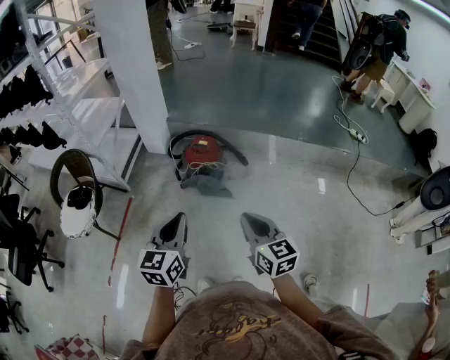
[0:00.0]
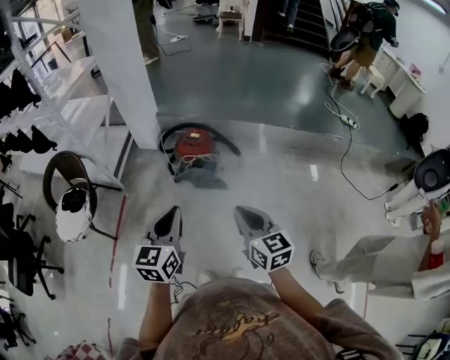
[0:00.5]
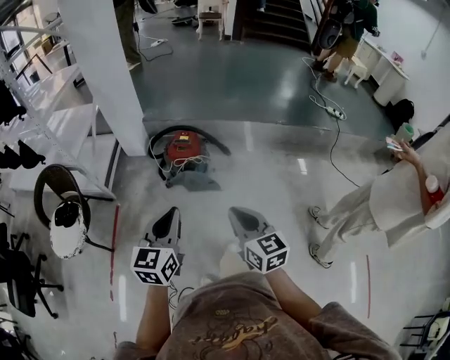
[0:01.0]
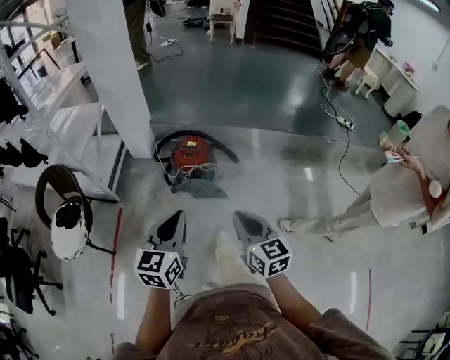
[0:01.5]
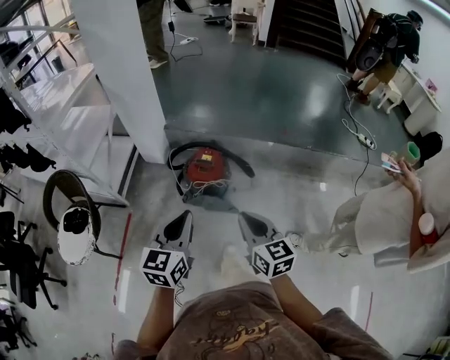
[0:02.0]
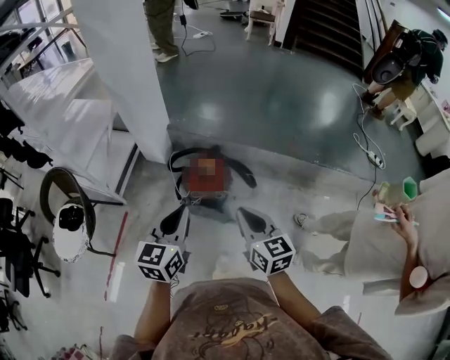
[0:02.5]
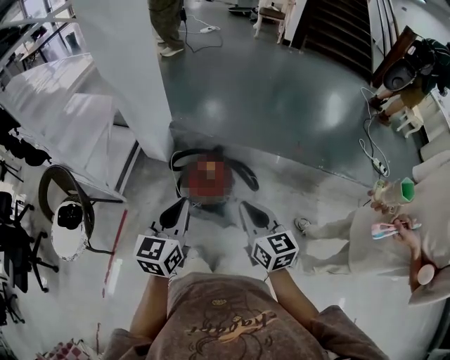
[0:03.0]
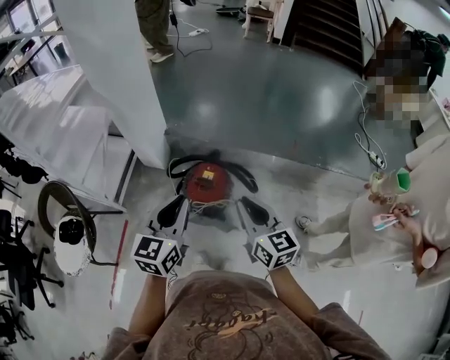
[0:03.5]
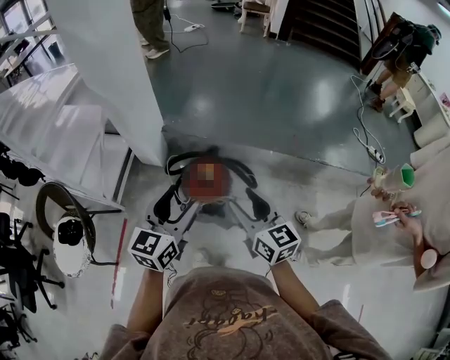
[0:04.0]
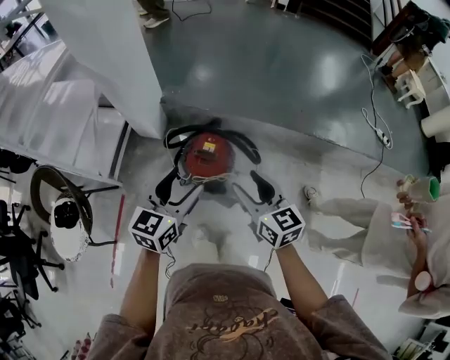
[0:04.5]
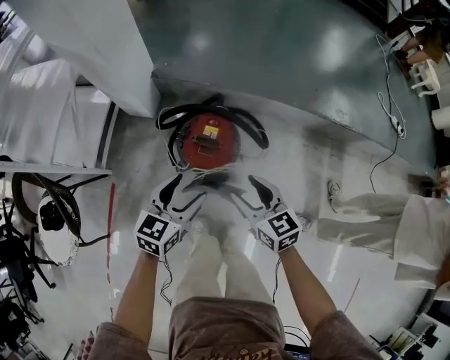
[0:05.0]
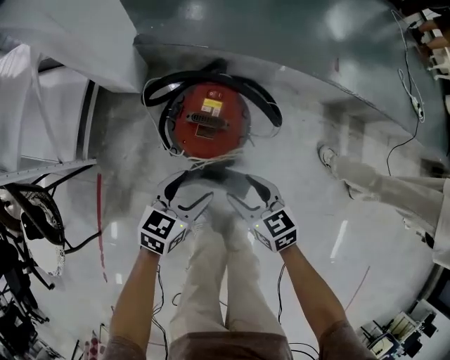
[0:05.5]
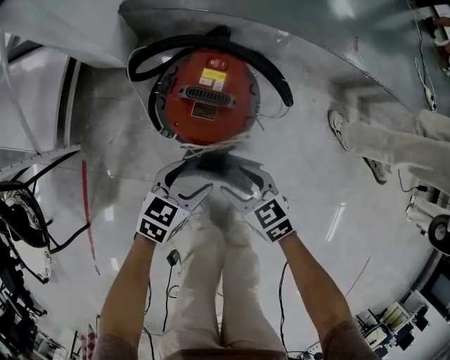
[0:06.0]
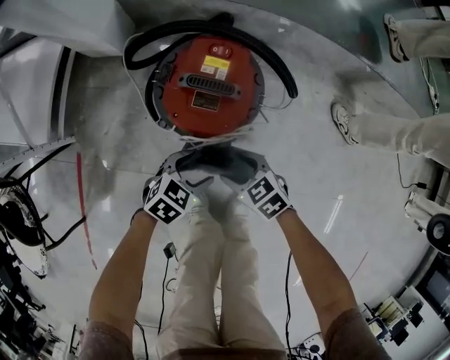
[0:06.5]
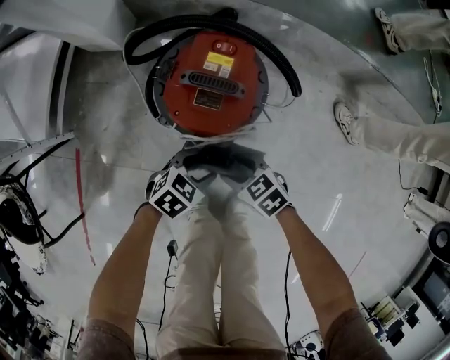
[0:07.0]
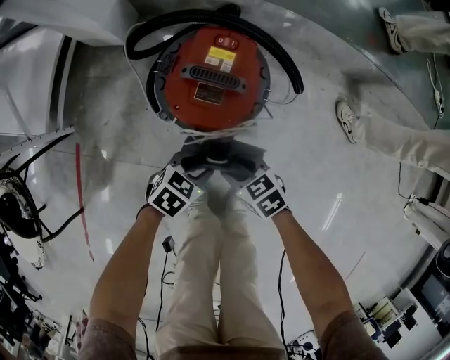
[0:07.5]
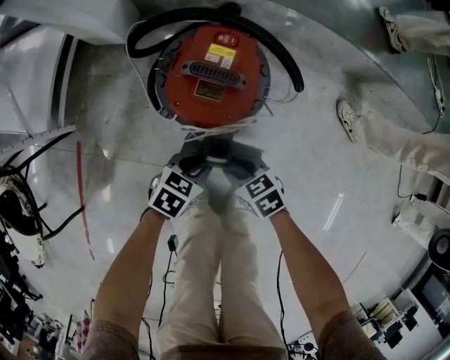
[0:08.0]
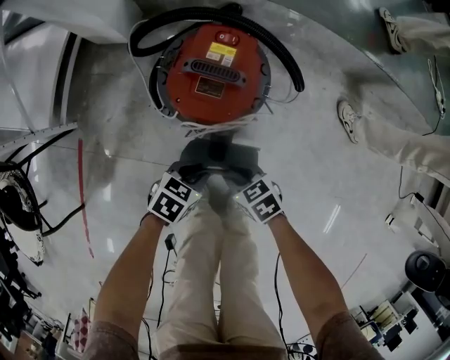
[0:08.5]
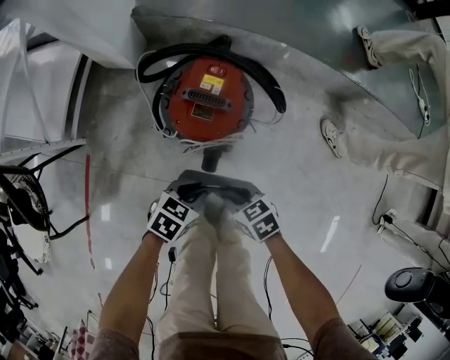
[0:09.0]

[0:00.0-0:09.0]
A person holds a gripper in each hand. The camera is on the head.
0:00.0 to 0:02.0: The grippers both shift forward by about 15 cm.
0:02.0 to 0:04.5: Both grippers move forward, roughly 25 cm. The right gripper opens up, while the left gripper opens up.
0:04.5 to 0:07.0: The grippers both shift downward by roughly 60 cm. The left gripper tilts its fingers about 30 degrees downward, while the right gripper angles its fingers downward, by some 40 degrees.
0:07.0 to 0:09.0: The two grippers go roughly 10 cm upward. The left gripper closes; the right gripper closes its fingers.

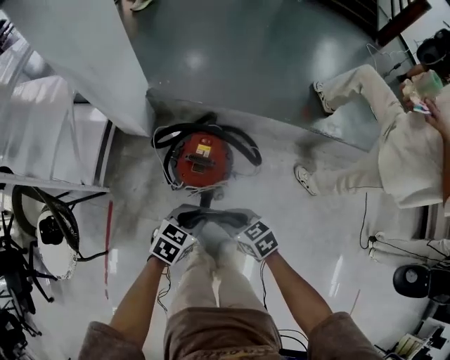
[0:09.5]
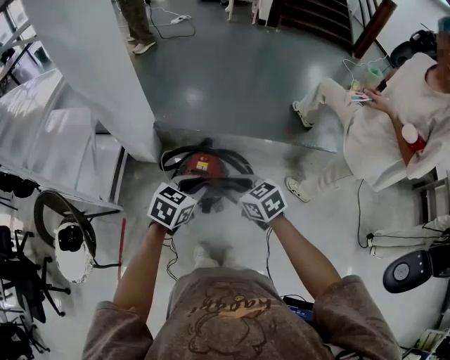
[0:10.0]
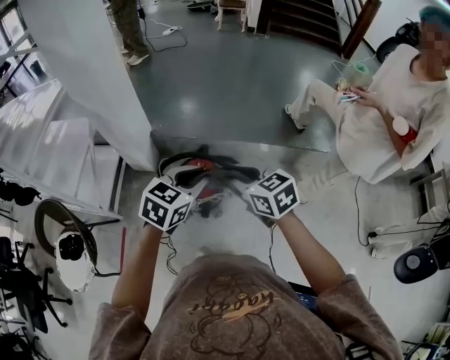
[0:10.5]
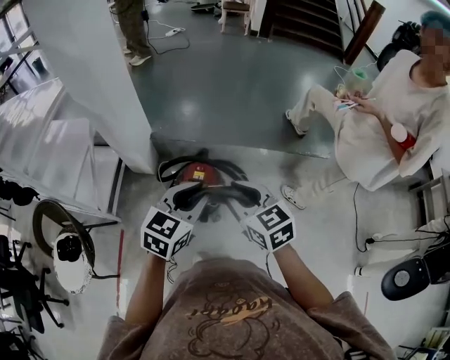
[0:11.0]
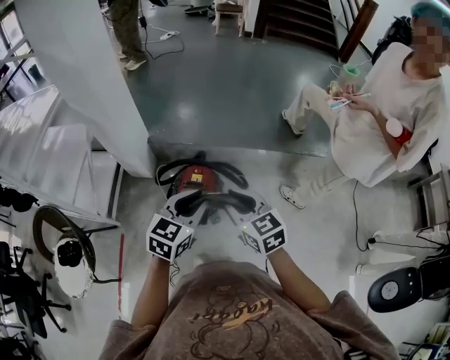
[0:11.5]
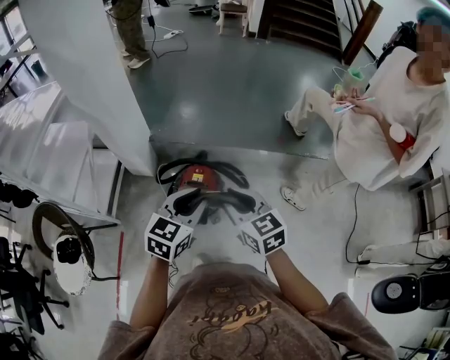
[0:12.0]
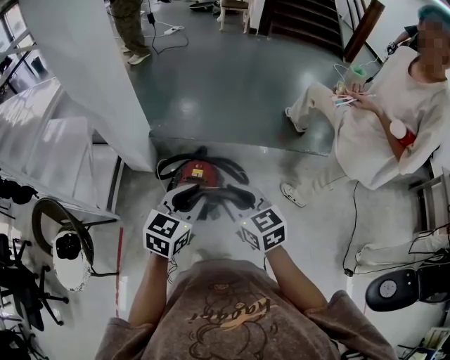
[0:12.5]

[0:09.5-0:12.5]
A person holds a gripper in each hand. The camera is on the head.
0:09.5 to 0:11.0: Both grippers move upward, approximately 30 cm. The right gripper changes its angle by some 30 degrees. Meanwhile the left gripper swivels some 30 degrees.
0:11.0 to 0:12.5: There are only small adjustments of the grippers.

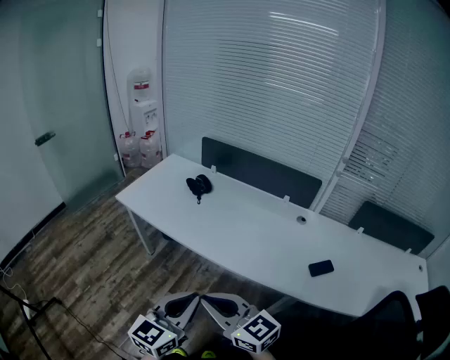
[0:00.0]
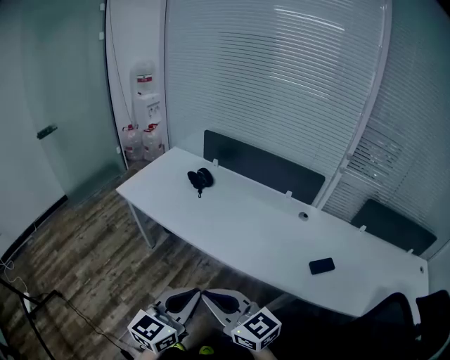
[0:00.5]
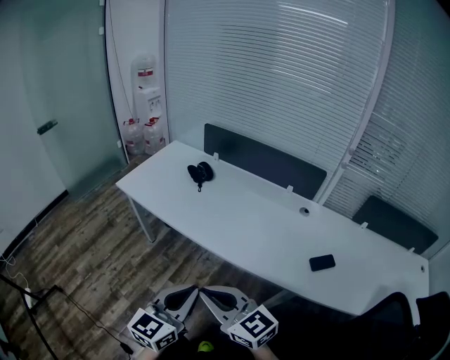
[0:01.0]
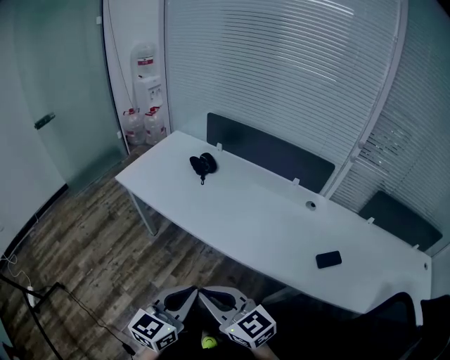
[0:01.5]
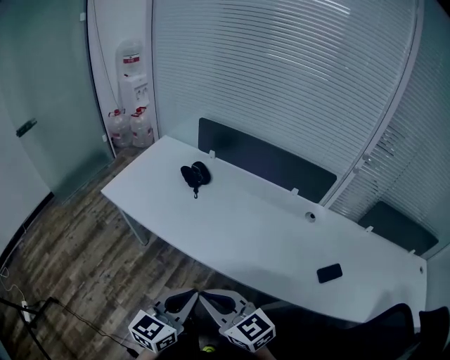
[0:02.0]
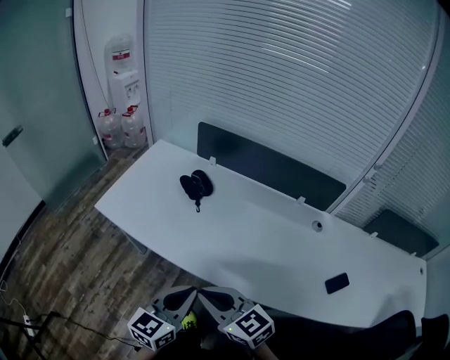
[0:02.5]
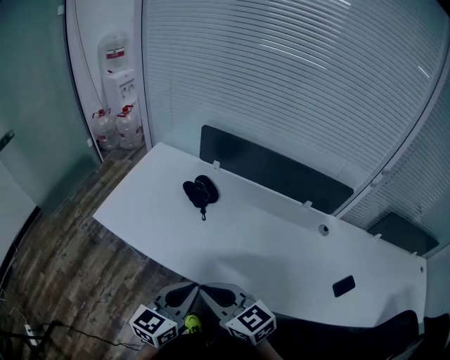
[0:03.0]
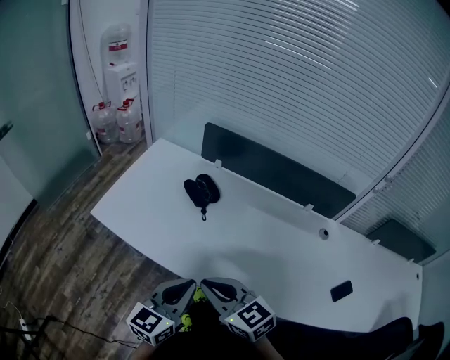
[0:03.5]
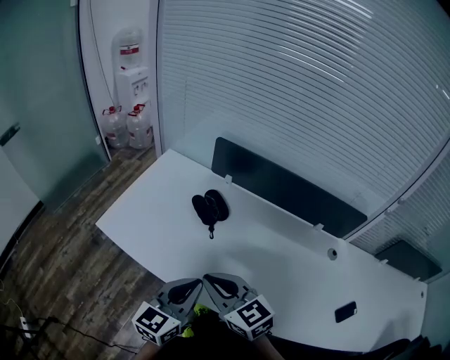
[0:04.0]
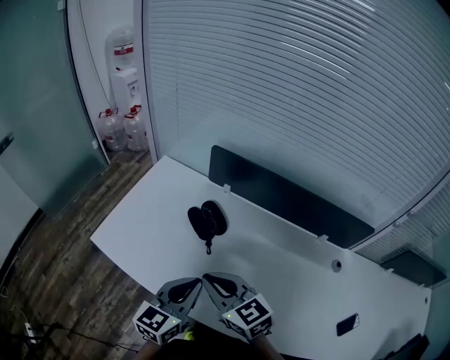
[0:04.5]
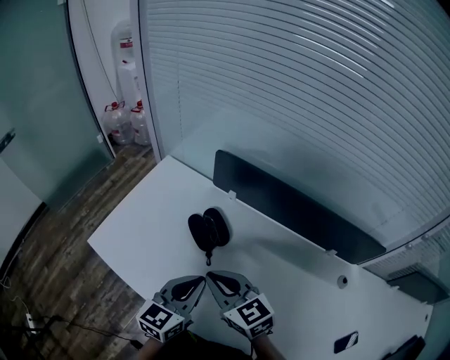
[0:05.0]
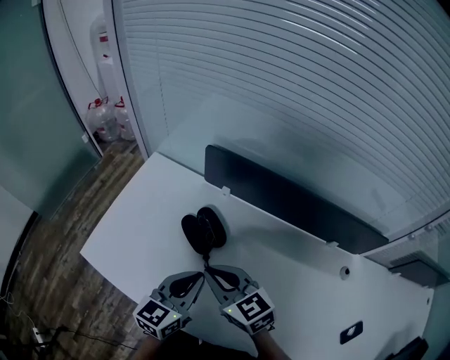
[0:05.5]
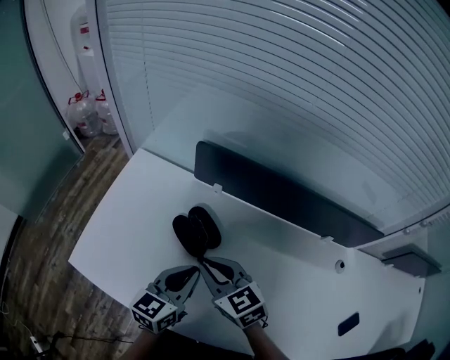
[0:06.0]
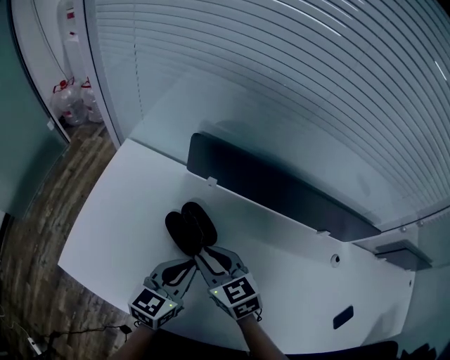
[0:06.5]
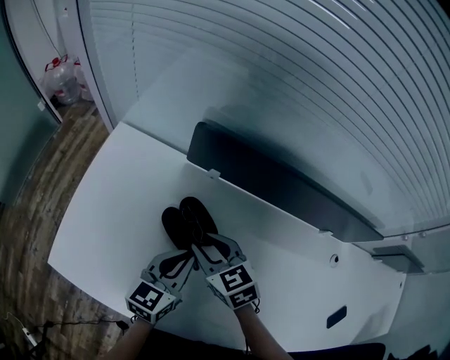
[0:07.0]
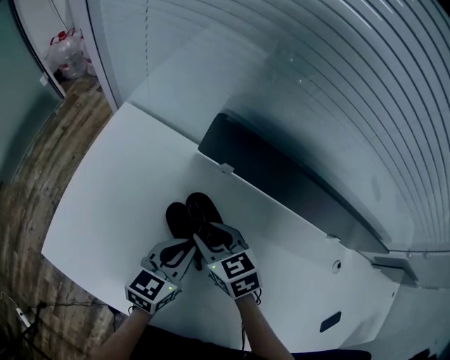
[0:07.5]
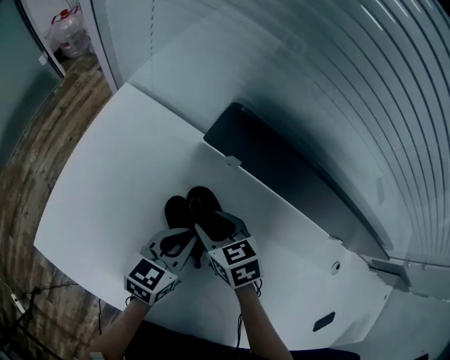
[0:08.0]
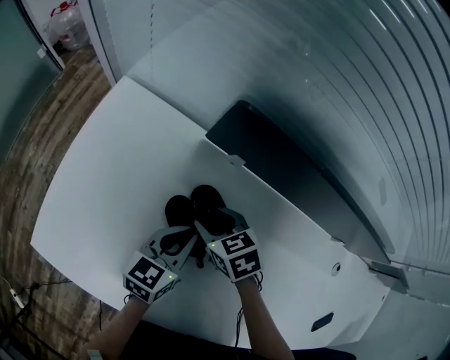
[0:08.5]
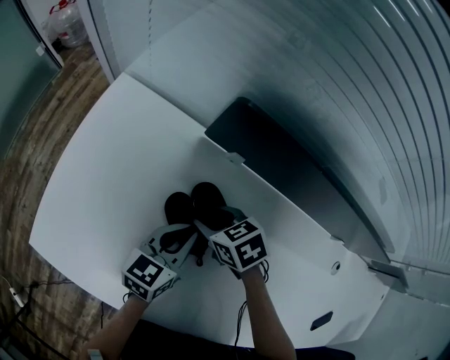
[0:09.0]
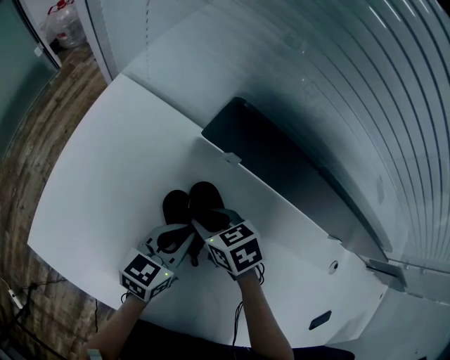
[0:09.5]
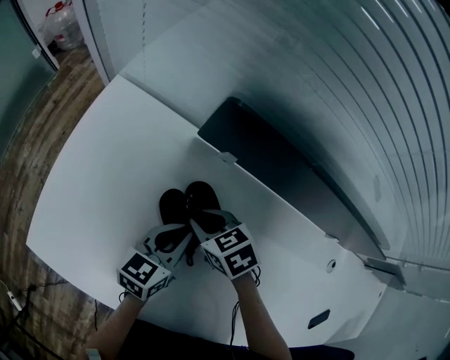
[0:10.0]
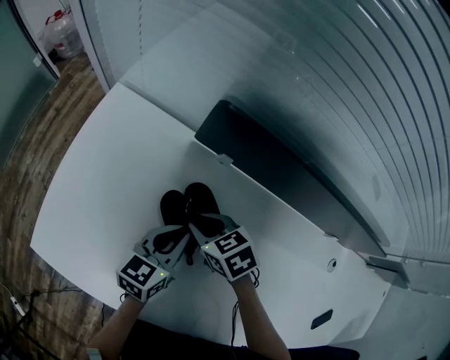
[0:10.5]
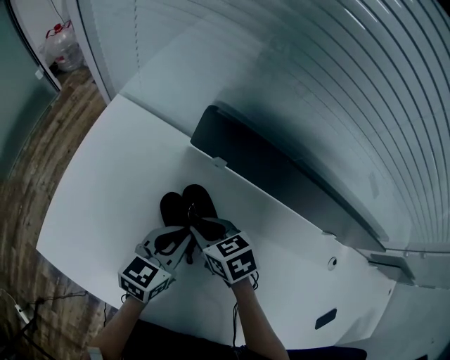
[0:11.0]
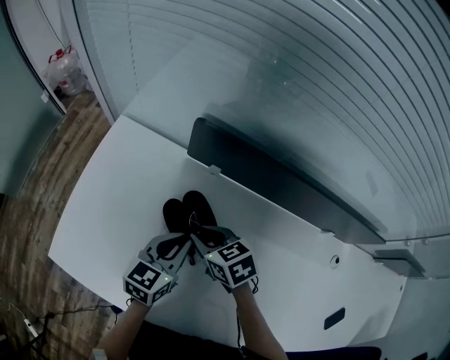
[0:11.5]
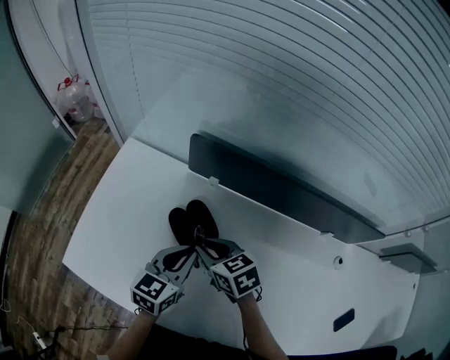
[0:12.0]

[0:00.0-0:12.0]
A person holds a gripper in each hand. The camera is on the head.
0:00.0 to 0:02.0: The right gripper goes about 10 cm forward. The left gripper shifts approximately 10 cm forward and downward.
0:02.0 to 0:04.0: The two grippers go approximately 25 cm forward.
0:04.0 to 0:06.0: The two grippers go approximately 20 cm forward.
0:06.0 to 0:08.0: The two grippers go some 15 cm downward and forward. The right gripper swivels roughly 20 degrees, and opens.
0:08.0 to 0:10.0: The right gripper closes its fingers.
0:10.0 to 0:12.0: The right gripper shifts roughly 10 cm upward and backward. The left gripper goes about 10 cm upward.

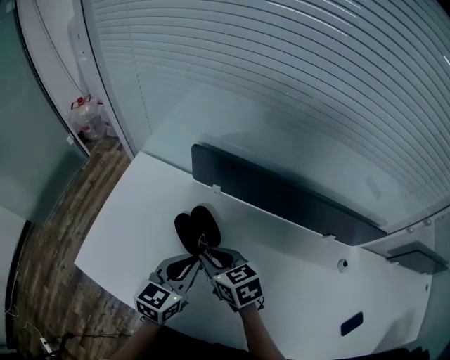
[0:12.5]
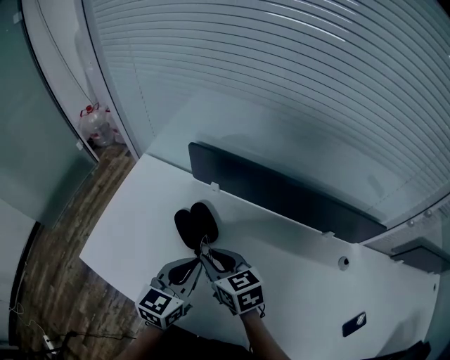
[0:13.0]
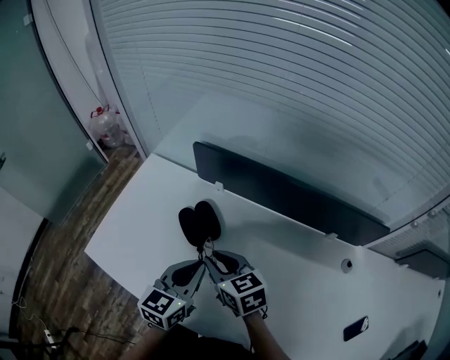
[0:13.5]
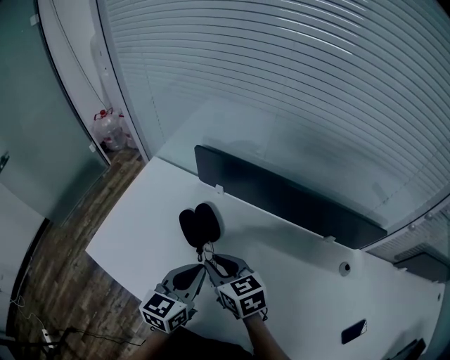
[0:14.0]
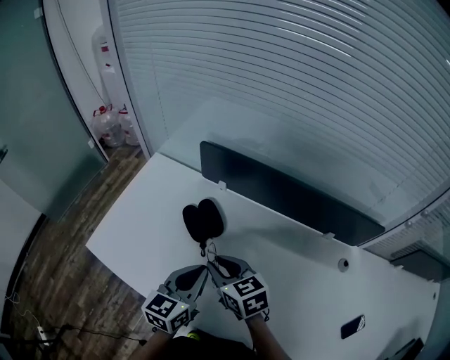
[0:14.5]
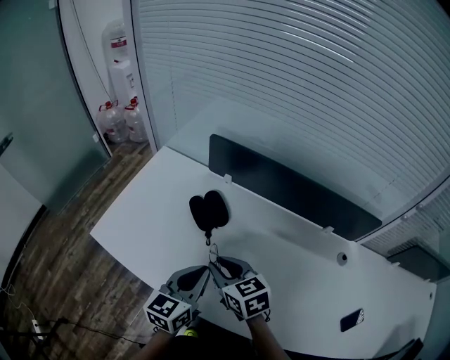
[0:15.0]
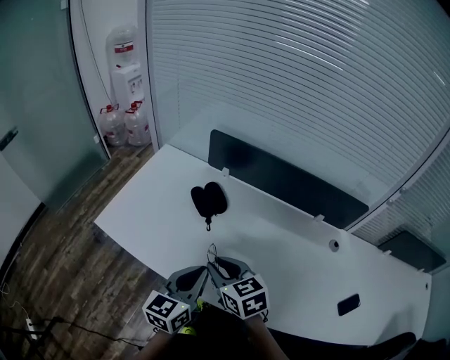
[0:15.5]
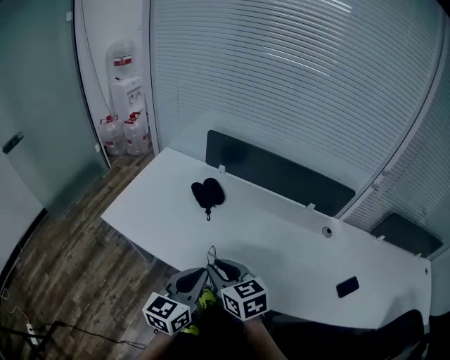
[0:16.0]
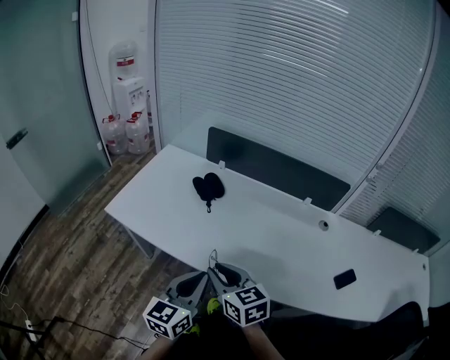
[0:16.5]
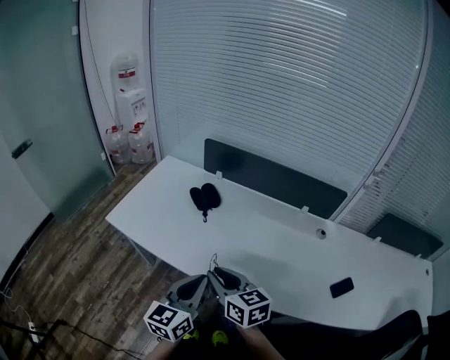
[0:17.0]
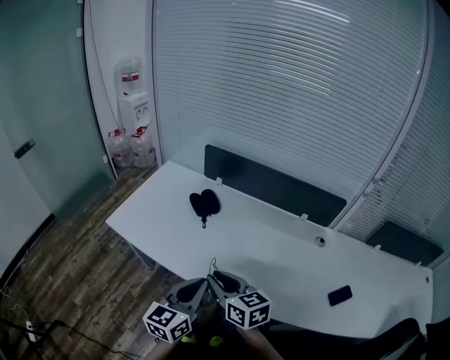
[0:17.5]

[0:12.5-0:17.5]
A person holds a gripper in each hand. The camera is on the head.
0:12.5 to 0:15.0: Both grippers travel together backward, approximately 10 cm.
0:15.0 to 0:17.5: Both grippers travel together backward, approximately 20 cm.
